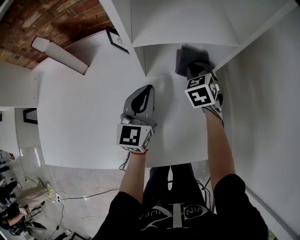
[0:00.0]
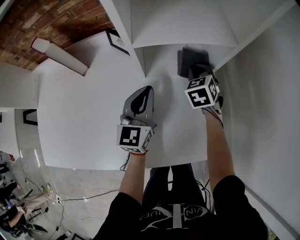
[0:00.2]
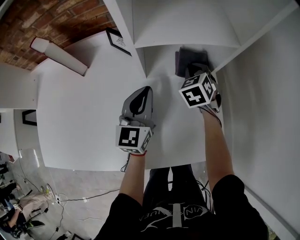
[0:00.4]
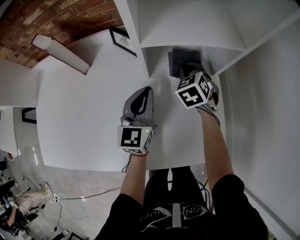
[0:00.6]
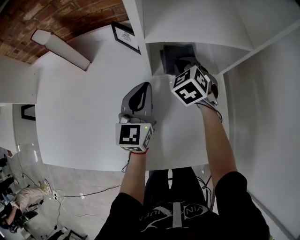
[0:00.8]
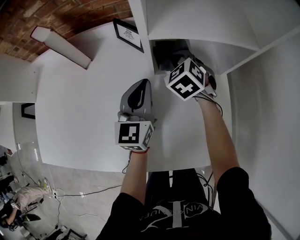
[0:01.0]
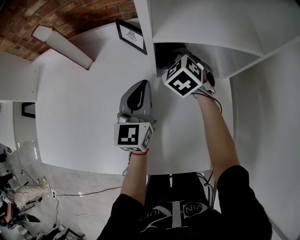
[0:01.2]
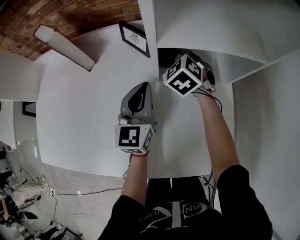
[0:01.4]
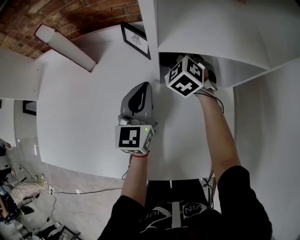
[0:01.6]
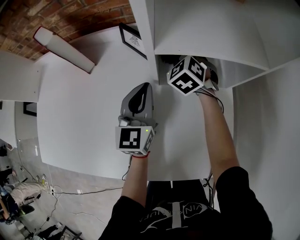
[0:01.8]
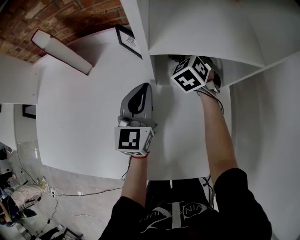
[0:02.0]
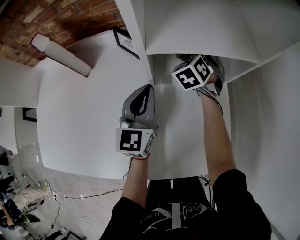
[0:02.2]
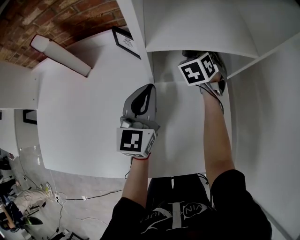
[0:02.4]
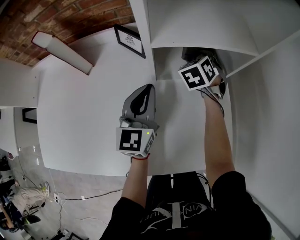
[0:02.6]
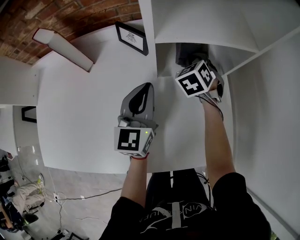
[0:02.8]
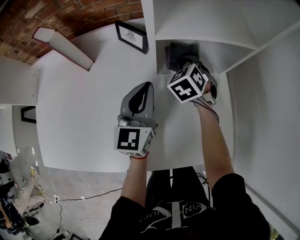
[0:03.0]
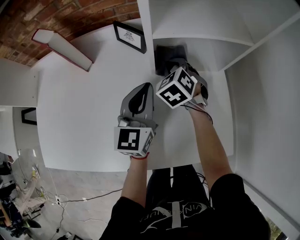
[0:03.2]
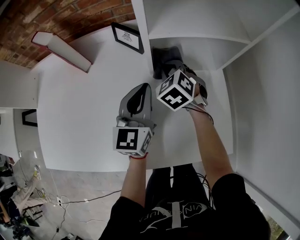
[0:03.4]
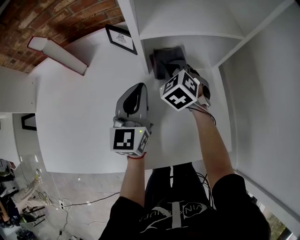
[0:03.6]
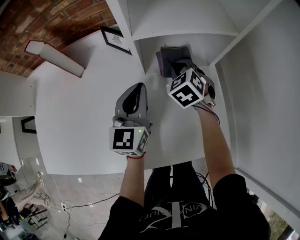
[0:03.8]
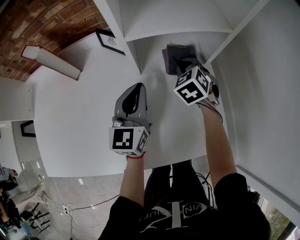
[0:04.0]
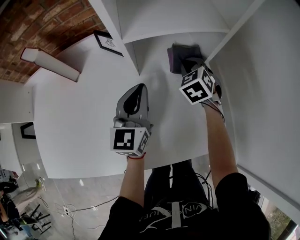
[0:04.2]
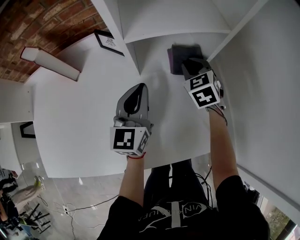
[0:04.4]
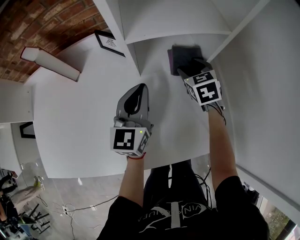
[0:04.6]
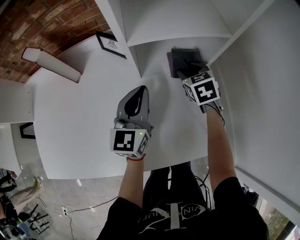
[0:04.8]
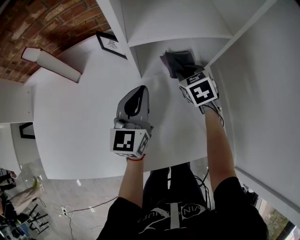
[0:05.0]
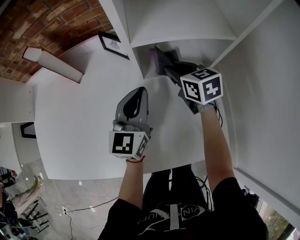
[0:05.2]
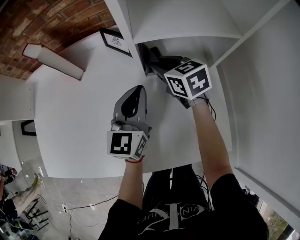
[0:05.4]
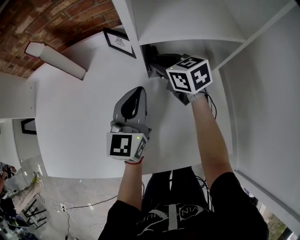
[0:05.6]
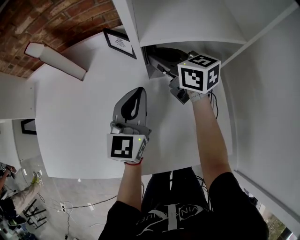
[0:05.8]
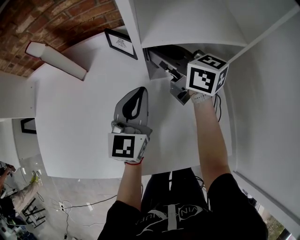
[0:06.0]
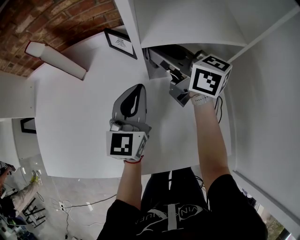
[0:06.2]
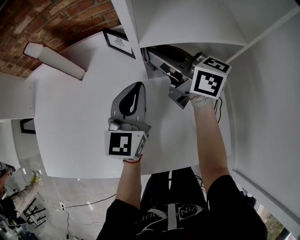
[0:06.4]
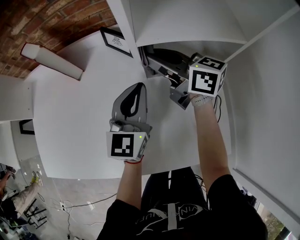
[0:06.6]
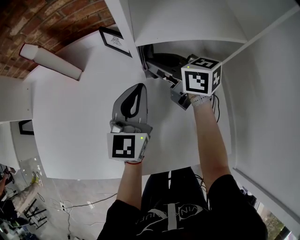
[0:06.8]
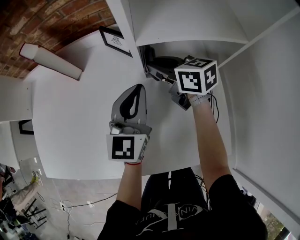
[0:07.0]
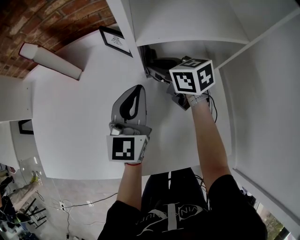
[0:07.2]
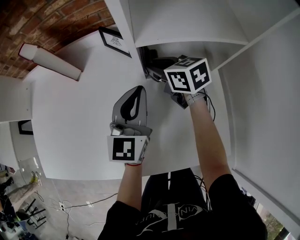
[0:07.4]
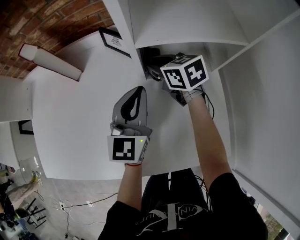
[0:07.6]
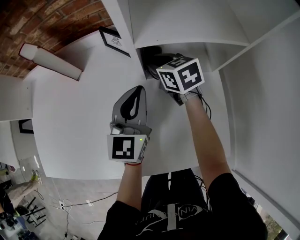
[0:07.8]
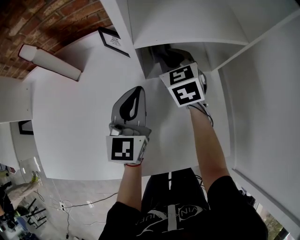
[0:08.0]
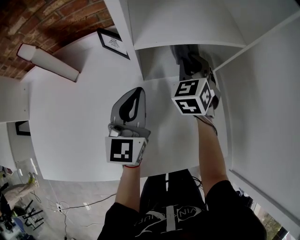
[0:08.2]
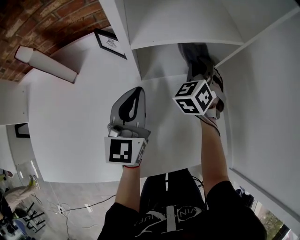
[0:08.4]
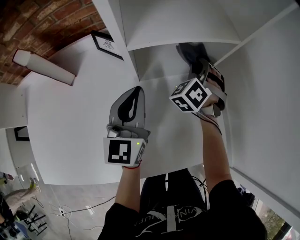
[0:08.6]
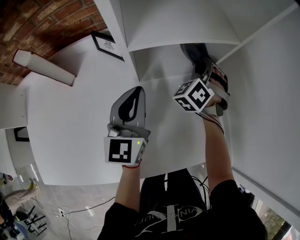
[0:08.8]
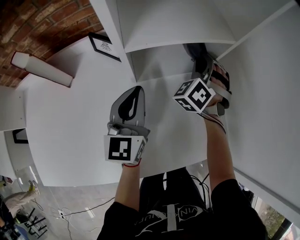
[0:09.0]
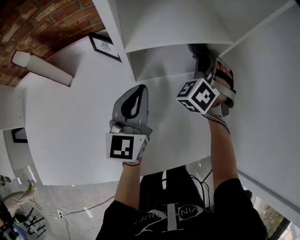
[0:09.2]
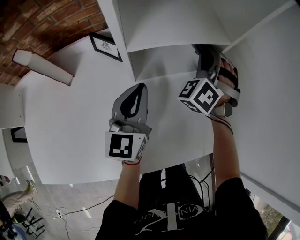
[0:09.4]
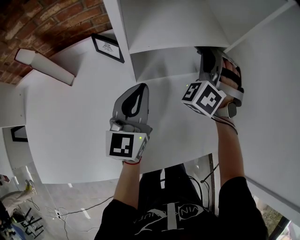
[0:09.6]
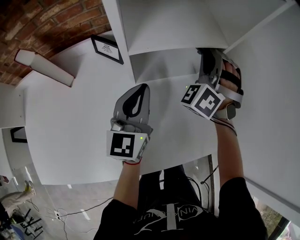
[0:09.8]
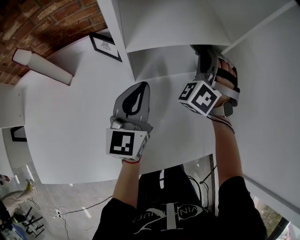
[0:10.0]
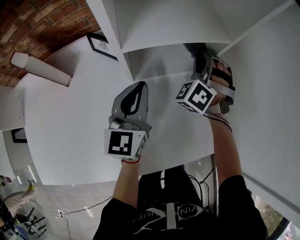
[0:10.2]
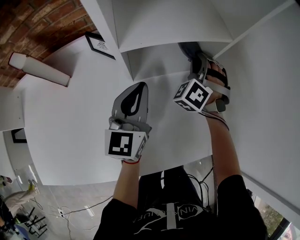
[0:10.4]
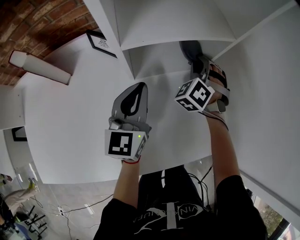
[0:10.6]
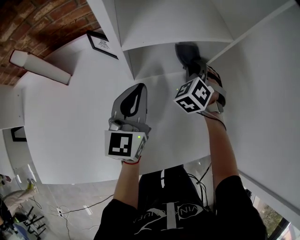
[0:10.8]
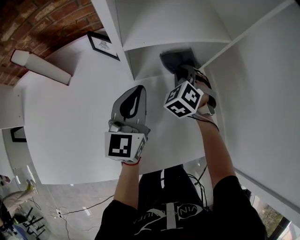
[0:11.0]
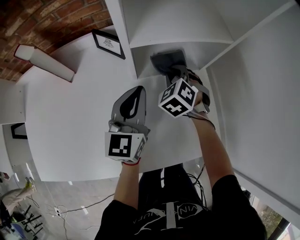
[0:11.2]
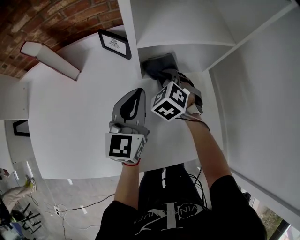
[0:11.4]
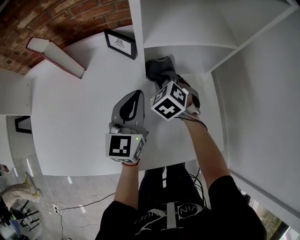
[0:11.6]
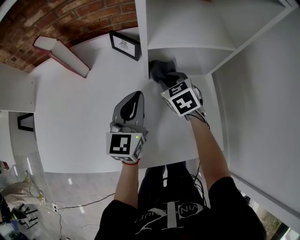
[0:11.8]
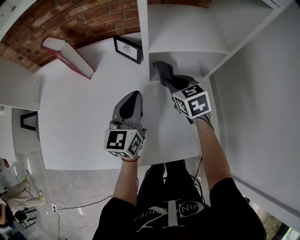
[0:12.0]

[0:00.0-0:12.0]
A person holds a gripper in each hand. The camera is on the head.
0:00.0 to 0:01.6: The right gripper heads to the left and forward, covering roughly 15 cm, and rotates roughly 30 degrees. Meanwhile the left gripper moves to the left, approximately 5 cm.
0:01.6 to 0:03.0: The left gripper changes place by approximately 5 cm, while the right gripper heads to the right and backward, covering roughly 10 cm, and swivels about 20 degrees.
0:03.0 to 0:04.4: The right gripper moves to the right, roughly 10 cm.
0:04.4 to 0:06.0: The right gripper moves to the left and upward, roughly 20 cm, tilts its fingers some 40 degrees upward, and opens and closes again.
0:06.0 to 0:07.6: The right gripper is displaced downward by approximately 10 cm, and rotates about 30 degrees.
0:07.6 to 0:09.0: The right gripper ends up about 20 cm from where it was, and rotates approximately 90 degrees.
0:09.0 to 0:10.4: The right gripper travels upward and back again, about 10 cm each way.
0:10.4 to 0:12.0: The left gripper shifts by about 10 cm. Meanwhile the right gripper moves approximately 15 cm, and swivels roughly 70 degrees.

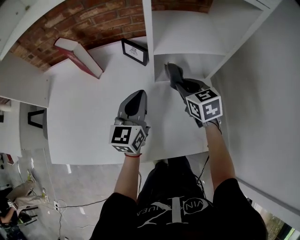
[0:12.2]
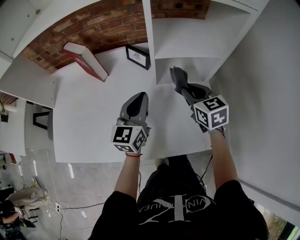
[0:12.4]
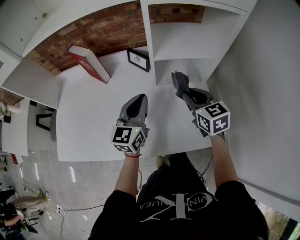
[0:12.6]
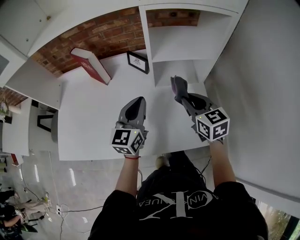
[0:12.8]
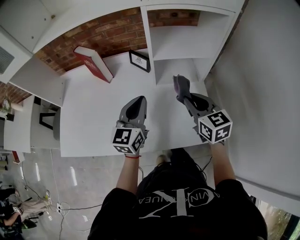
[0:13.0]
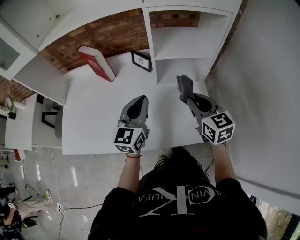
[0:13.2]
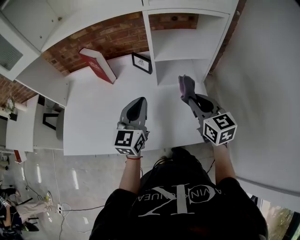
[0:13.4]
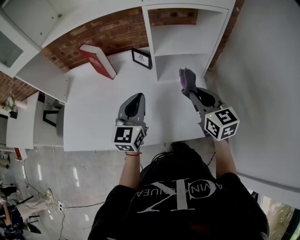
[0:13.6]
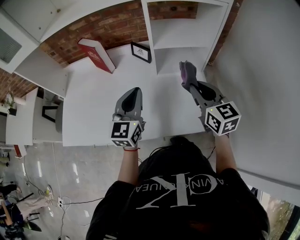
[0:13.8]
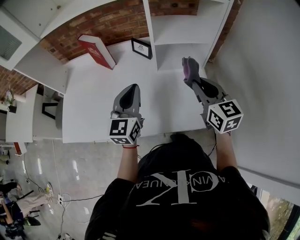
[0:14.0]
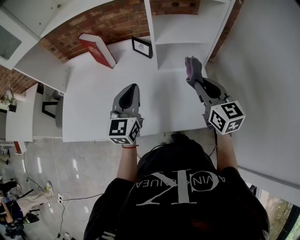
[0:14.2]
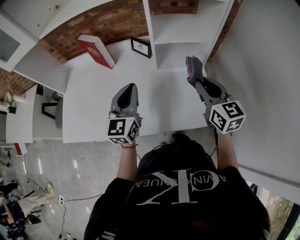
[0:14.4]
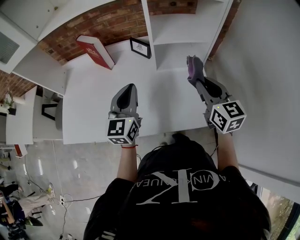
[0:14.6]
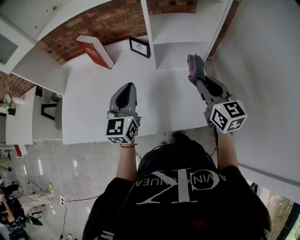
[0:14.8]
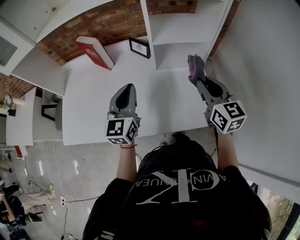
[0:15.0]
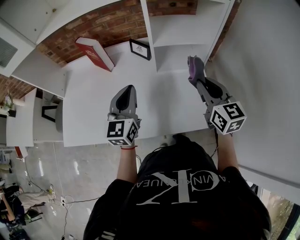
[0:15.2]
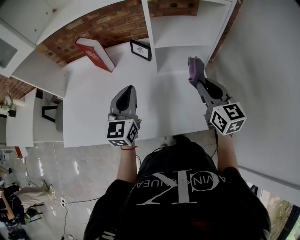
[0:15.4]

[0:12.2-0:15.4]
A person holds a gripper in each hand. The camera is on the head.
0:12.2 to 0:13.8: The two grippers go about 20 cm backward and upward. The right gripper rotates approximately 20 degrees.
0:13.8 to 0:15.4: There are only small adjustments of the grippers.

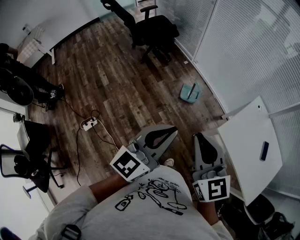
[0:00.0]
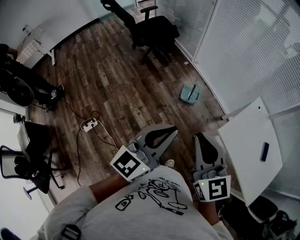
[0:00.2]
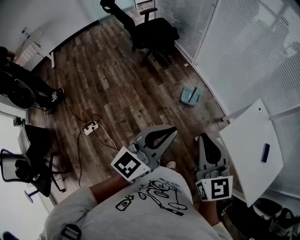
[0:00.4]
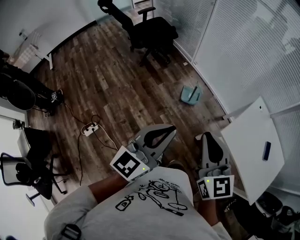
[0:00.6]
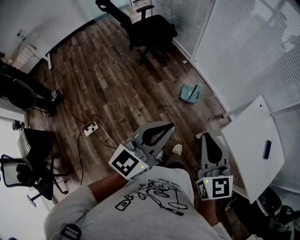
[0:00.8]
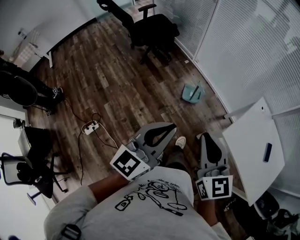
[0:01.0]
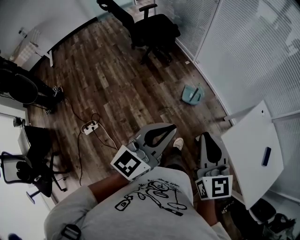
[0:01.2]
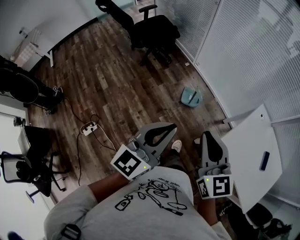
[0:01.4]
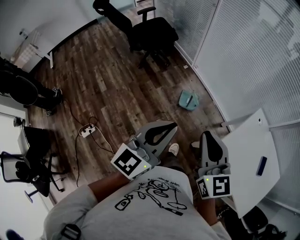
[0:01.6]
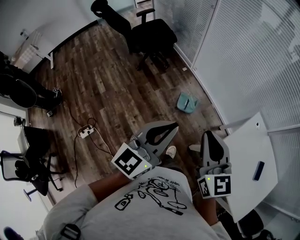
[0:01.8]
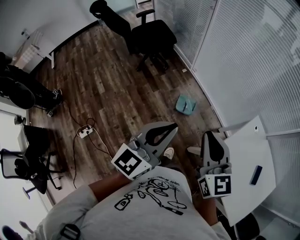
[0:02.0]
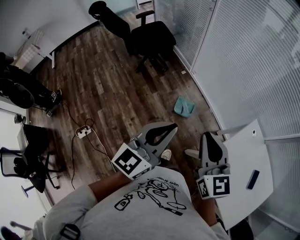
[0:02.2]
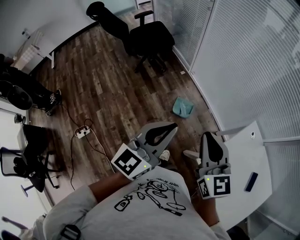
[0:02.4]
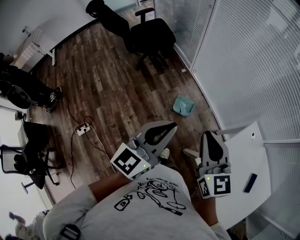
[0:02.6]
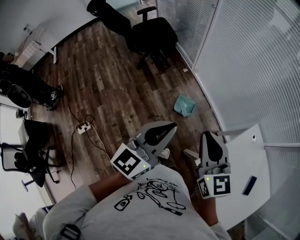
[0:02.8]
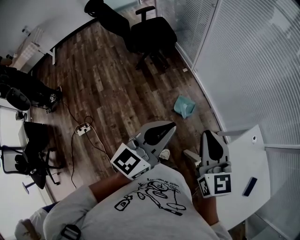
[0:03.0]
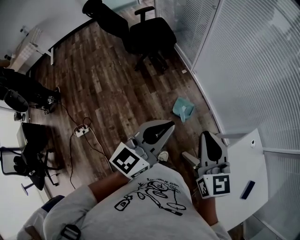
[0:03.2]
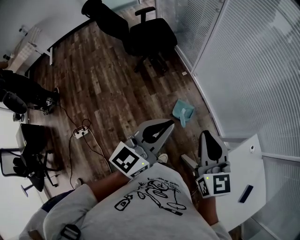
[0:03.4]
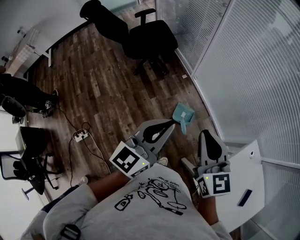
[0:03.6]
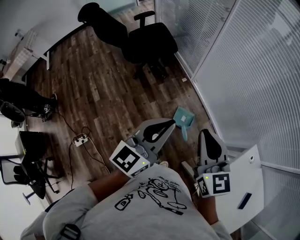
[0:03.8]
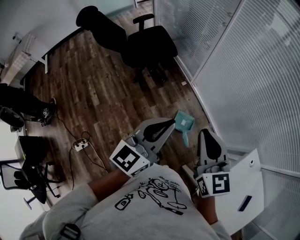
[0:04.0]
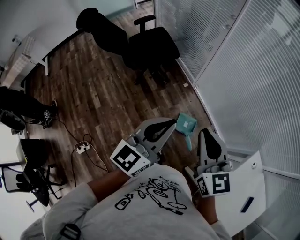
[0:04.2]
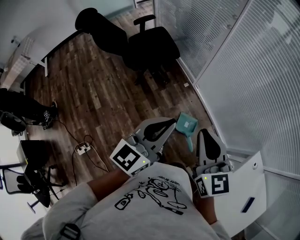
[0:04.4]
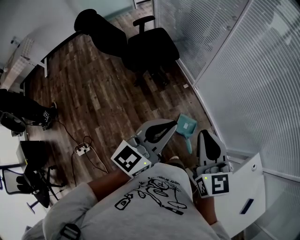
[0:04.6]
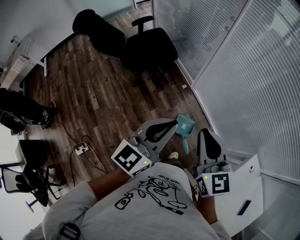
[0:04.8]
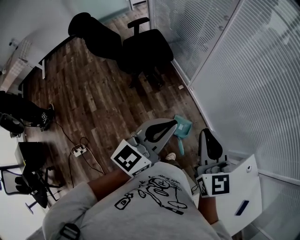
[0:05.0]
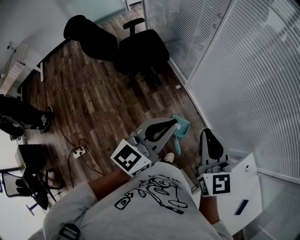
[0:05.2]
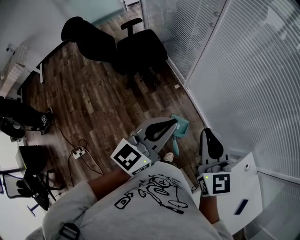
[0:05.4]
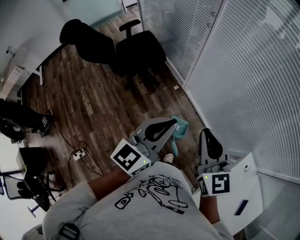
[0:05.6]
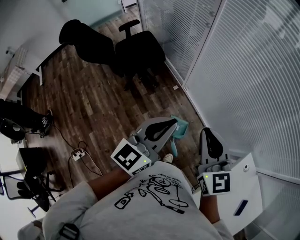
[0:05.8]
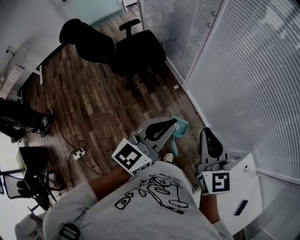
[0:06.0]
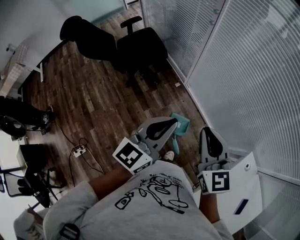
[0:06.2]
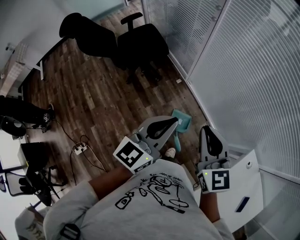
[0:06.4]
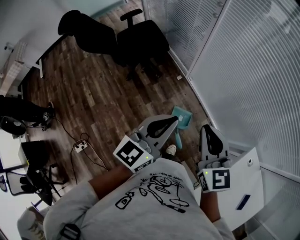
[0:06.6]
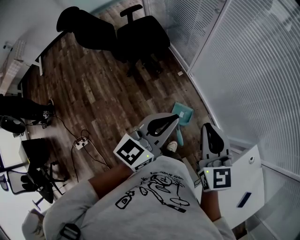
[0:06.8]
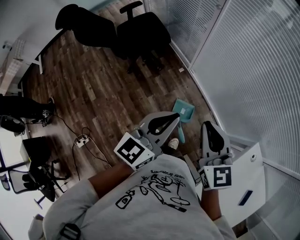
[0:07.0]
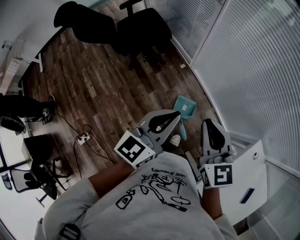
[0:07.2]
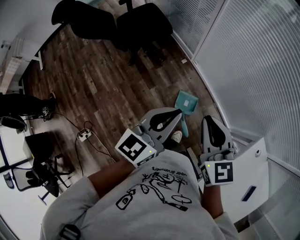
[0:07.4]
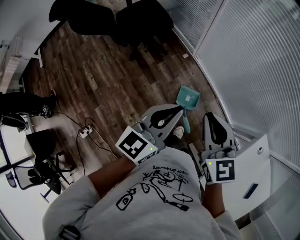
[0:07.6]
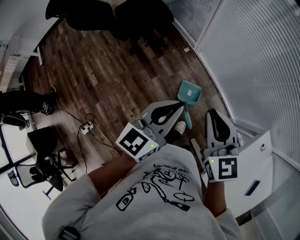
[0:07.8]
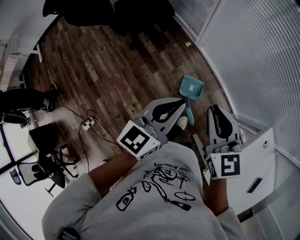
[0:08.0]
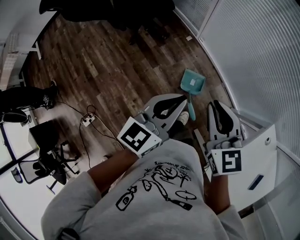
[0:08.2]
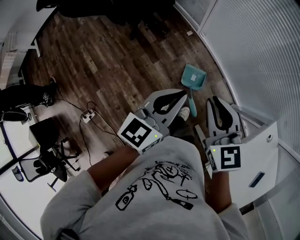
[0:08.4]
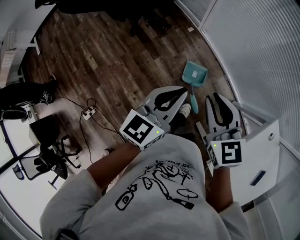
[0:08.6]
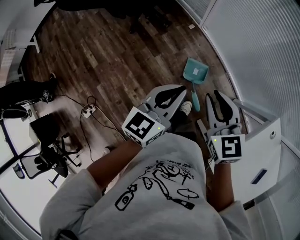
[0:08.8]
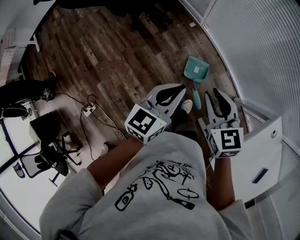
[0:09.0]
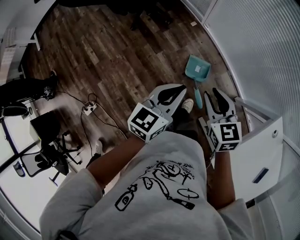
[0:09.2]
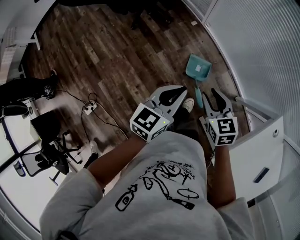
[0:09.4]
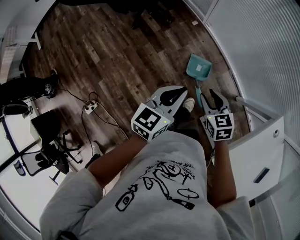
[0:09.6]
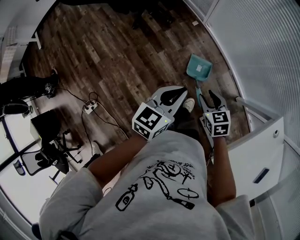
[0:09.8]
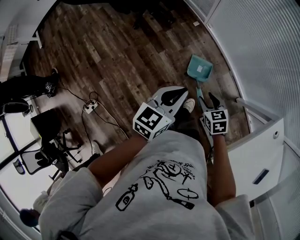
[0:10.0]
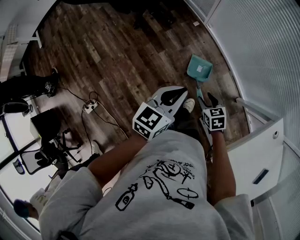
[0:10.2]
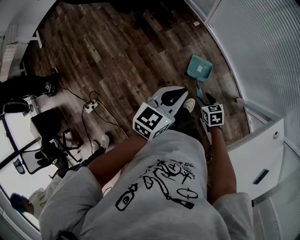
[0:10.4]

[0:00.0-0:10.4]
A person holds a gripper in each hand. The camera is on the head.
0:00.0 to 0:01.4: The grippers both shift forward by some 10 cm.
0:01.4 to 0:03.0: The grippers both shift forward and to the right by roughly 25 cm.
0:03.0 to 0:04.4: Both grippers travel together forward and to the left, about 30 cm.
0:04.4 to 0:06.0: Both grippers move to the right and forward, approximately 15 cm.
0:06.0 to 0:07.4: The two grippers go about 10 cm downward.
0:07.4 to 0:09.0: The two grippers go some 15 cm downward.
0:09.0 to 0:10.4: The left gripper shifts by about 5 cm. Meanwhile the right gripper is displaced downward by approximately 25 cm, turns by some 30 degrees, and opens up.
